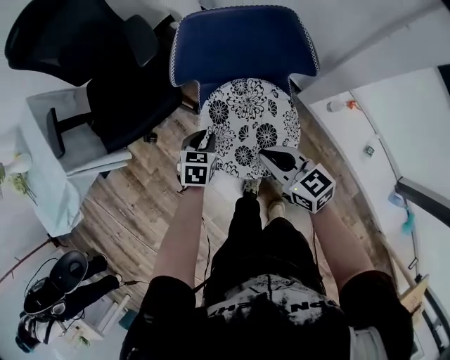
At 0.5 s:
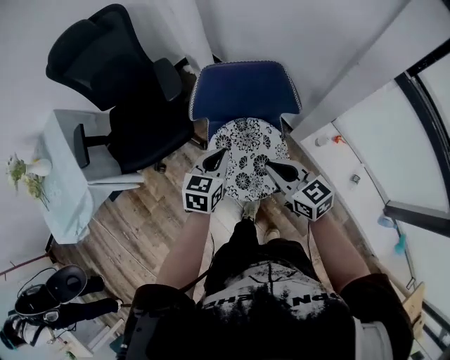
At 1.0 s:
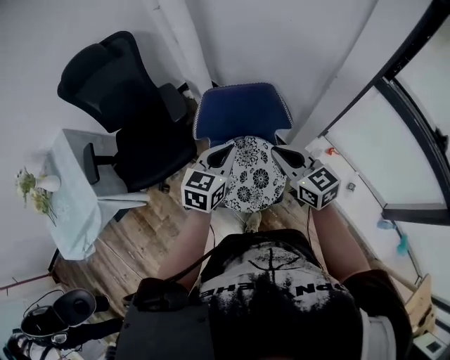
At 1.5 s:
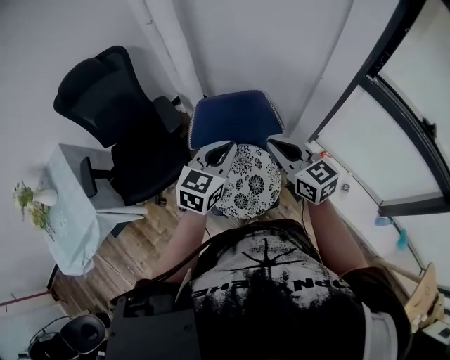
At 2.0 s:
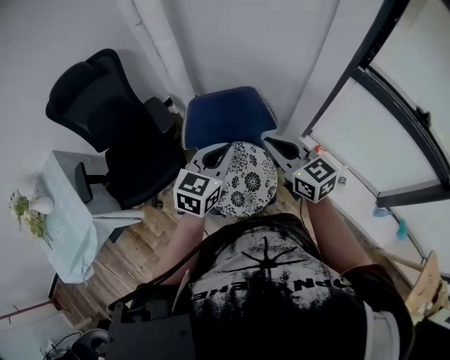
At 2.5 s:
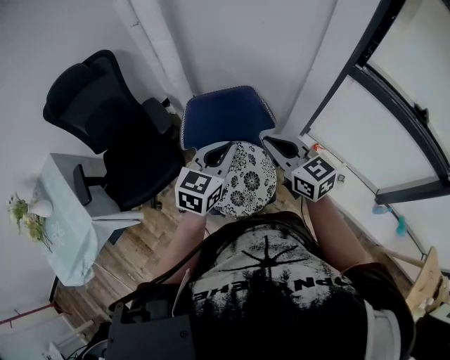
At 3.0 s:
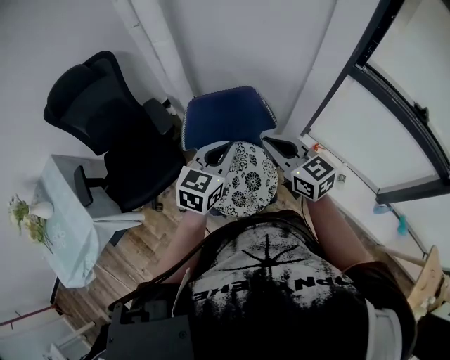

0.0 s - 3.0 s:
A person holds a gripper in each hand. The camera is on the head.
0.0 s - 1.5 s: Both grippers move upward, approximately 35 cm. The right gripper changes its angle by some 20 degrees; the left gripper tilts its fingers some 40 degrees upward.
1.5 s - 3.0 s: The grippers make only small movements.

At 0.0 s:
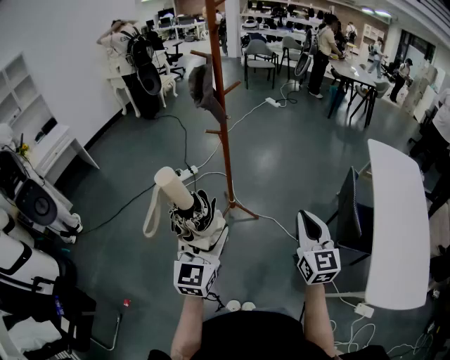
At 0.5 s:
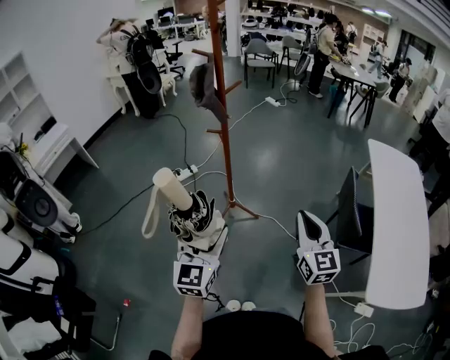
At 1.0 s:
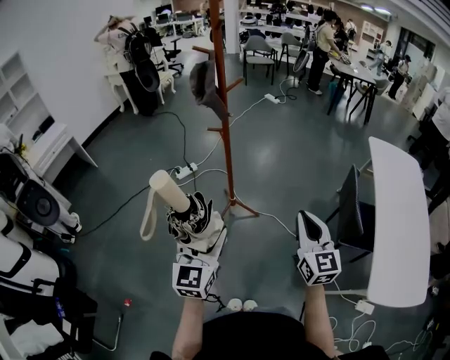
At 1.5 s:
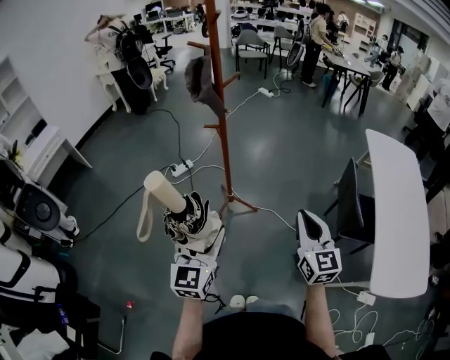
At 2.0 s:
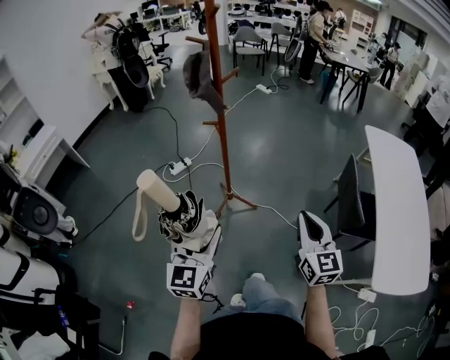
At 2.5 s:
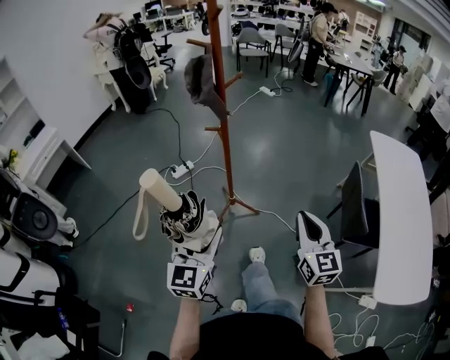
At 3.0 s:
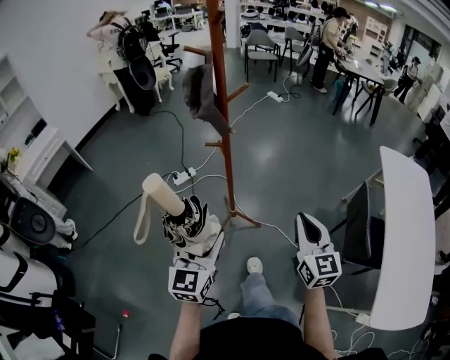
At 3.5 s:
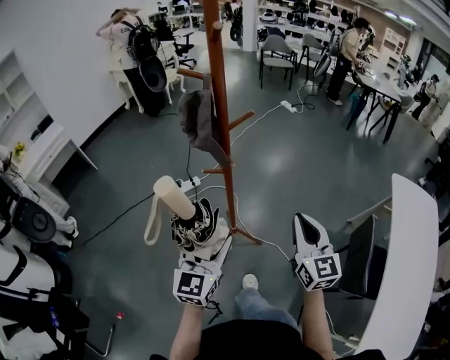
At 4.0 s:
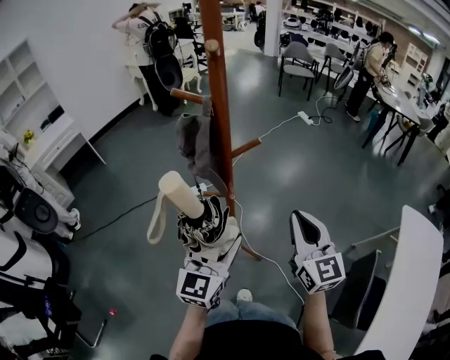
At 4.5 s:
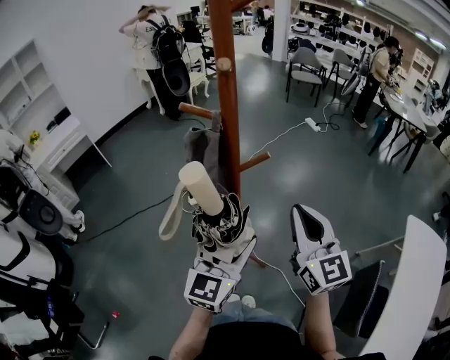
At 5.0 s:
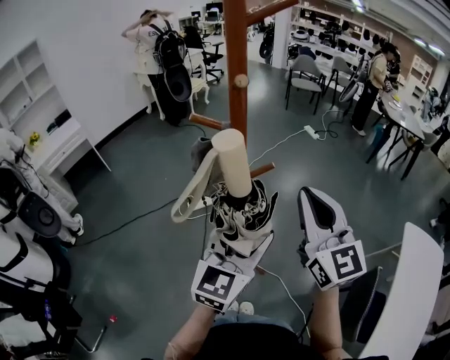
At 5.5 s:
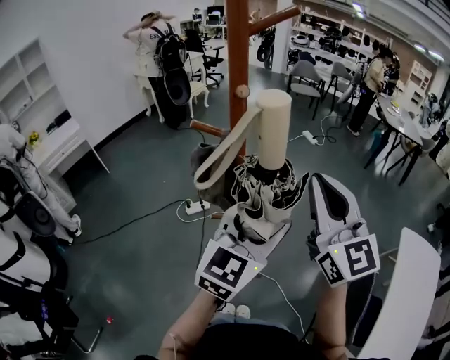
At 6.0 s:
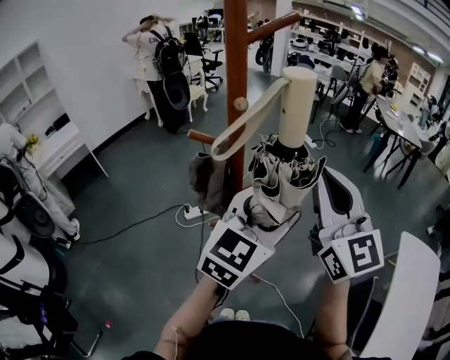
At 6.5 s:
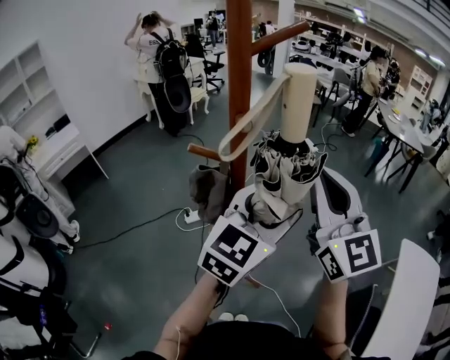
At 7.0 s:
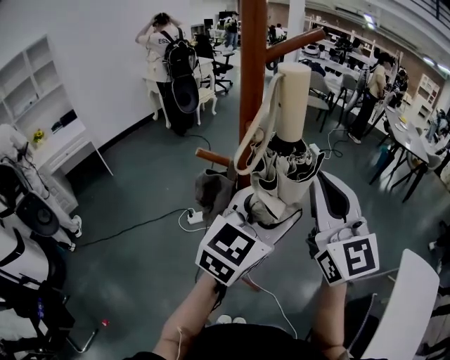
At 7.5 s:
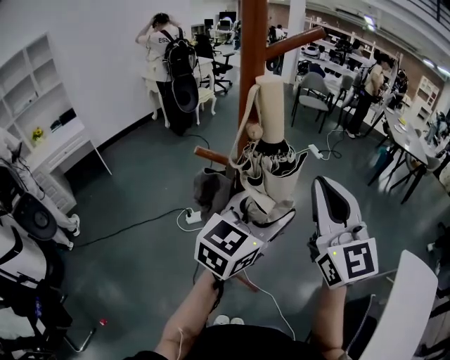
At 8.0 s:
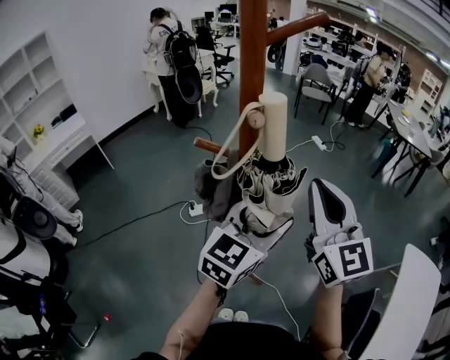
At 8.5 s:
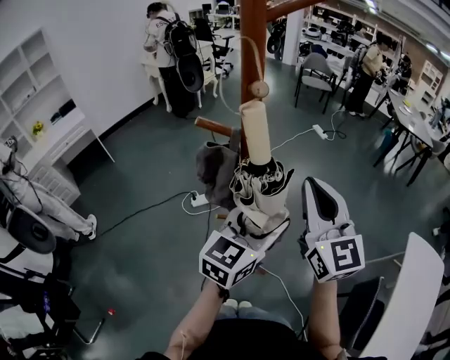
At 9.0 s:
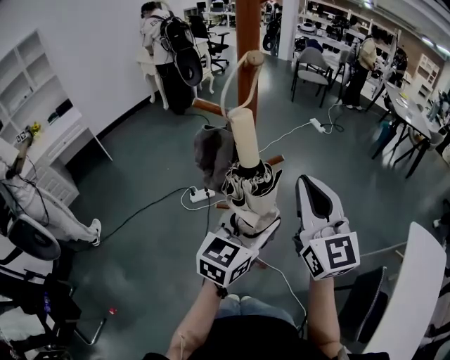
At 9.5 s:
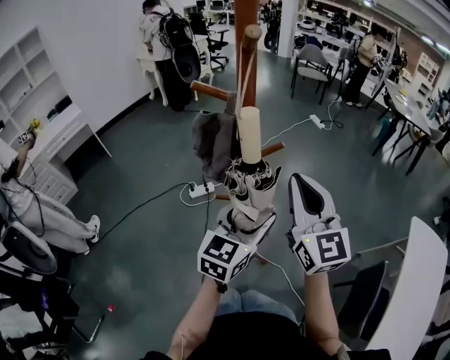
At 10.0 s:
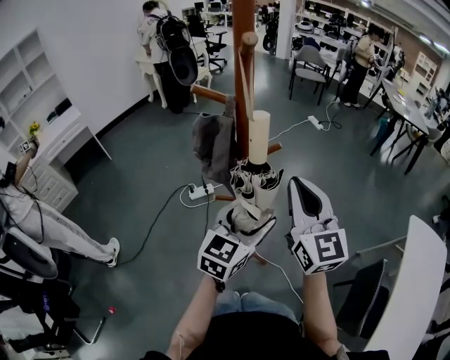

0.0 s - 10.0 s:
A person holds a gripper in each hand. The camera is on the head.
0.0 s - 2.0 s: The left gripper moves to the left, roughly 5 cm.
2.0 s - 4.0 s: The grippers both shift forward by about 40 cm. The right gripper turns by about 20 degrees.
4.0 s - 6.0 s: The right gripper goes approximately 25 cm upward; the left gripper is displaced upward, forward and to the right by roughly 20 cm, and turns by about 20 degrees.
6.0 s - 8.0 s: The right gripper ends up some 5 cm from where it was. Meanwhile the left gripper heads downward, covering roughly 5 cm.
8.0 s - 10.0 s: The two grippers go approximately 15 cm downward and backward.

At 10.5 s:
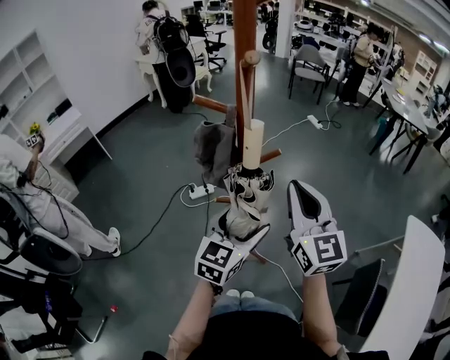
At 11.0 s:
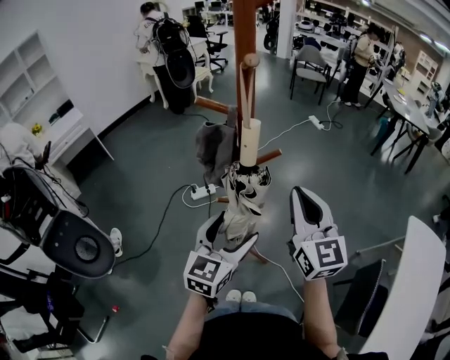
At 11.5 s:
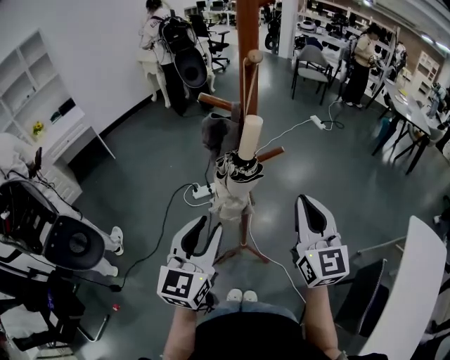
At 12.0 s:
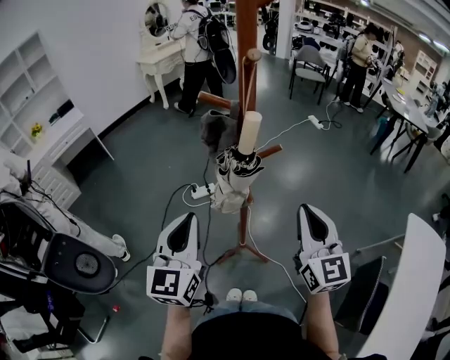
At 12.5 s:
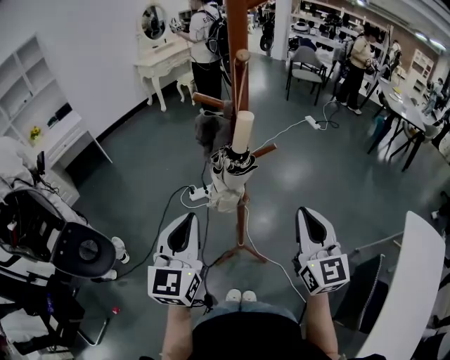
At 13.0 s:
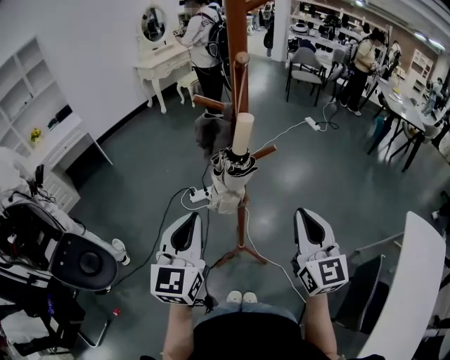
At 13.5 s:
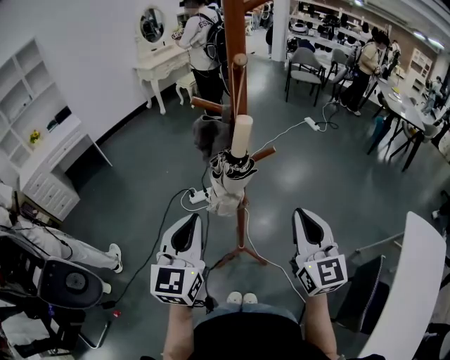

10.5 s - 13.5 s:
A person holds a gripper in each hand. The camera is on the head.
10.5 s - 12.0 s: The right gripper moves backward, approximately 5 cm; the left gripper travels to the left and upward by about 15 cm, rotates approximately 30 degrees, and closes up.
12.0 s - 13.5 s: The grippers stay close to where they were, moving slightly.

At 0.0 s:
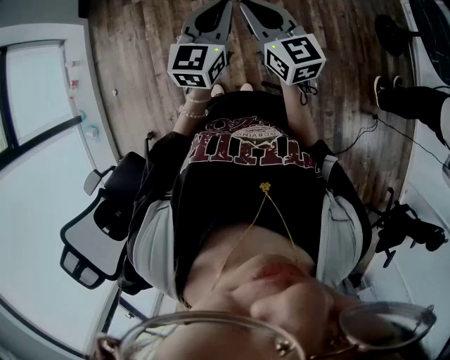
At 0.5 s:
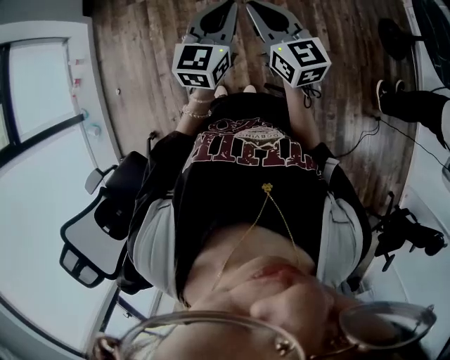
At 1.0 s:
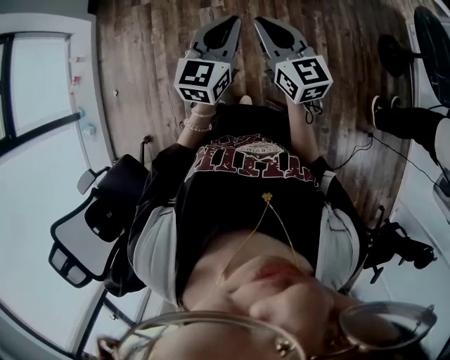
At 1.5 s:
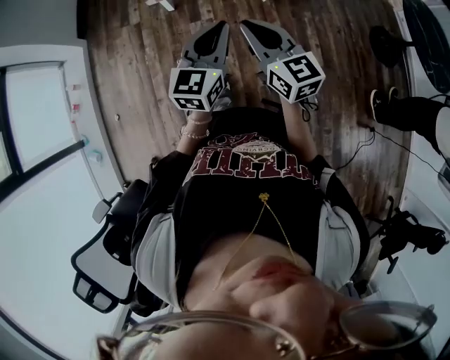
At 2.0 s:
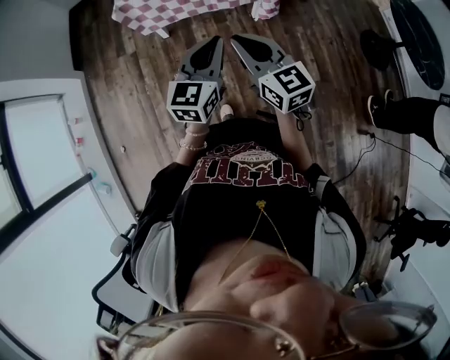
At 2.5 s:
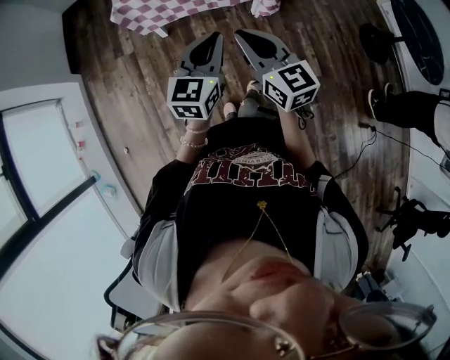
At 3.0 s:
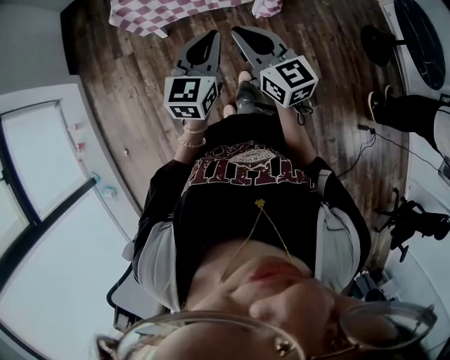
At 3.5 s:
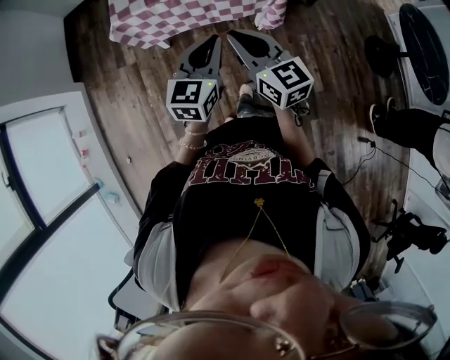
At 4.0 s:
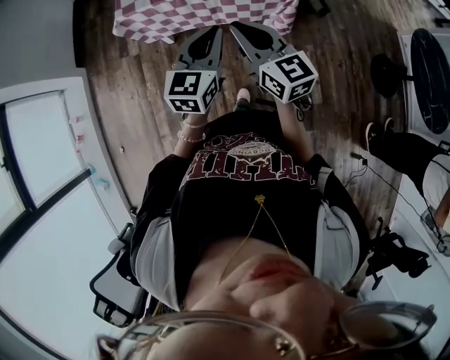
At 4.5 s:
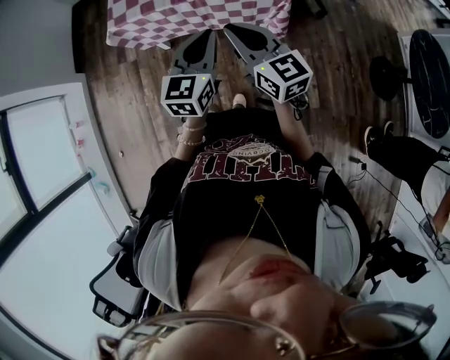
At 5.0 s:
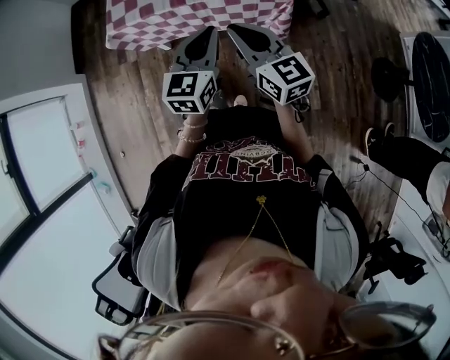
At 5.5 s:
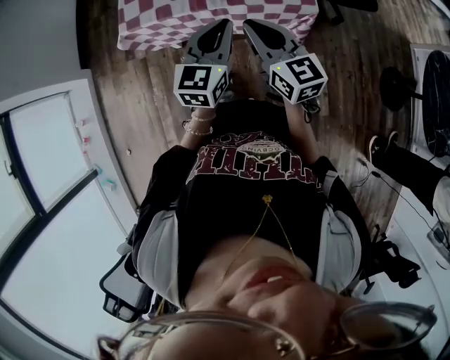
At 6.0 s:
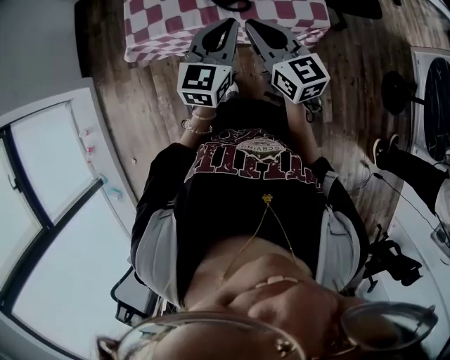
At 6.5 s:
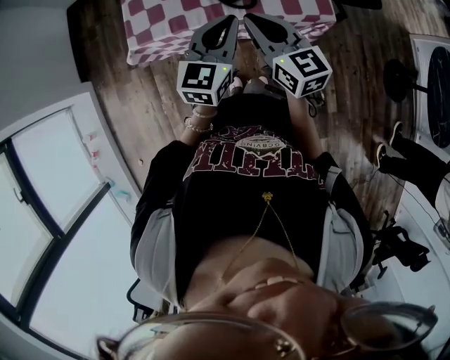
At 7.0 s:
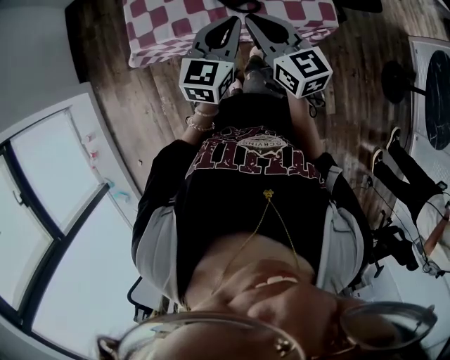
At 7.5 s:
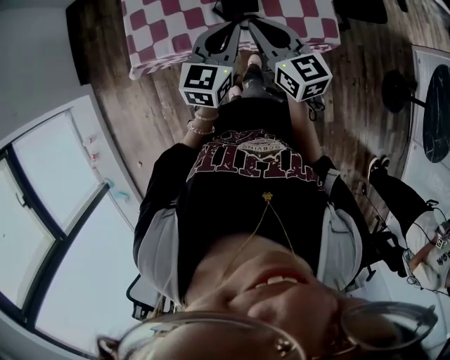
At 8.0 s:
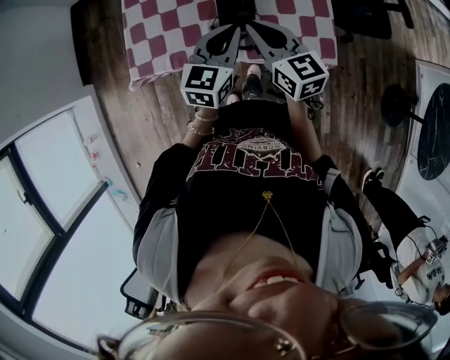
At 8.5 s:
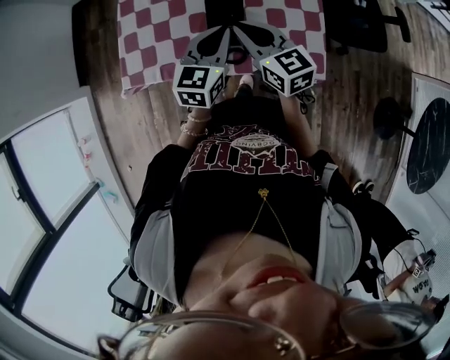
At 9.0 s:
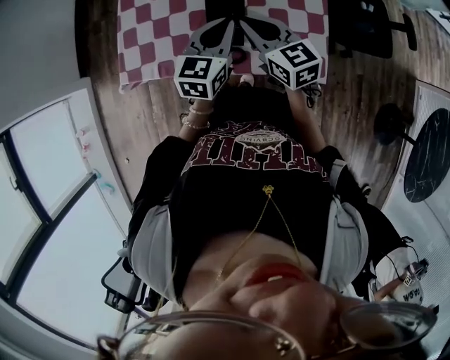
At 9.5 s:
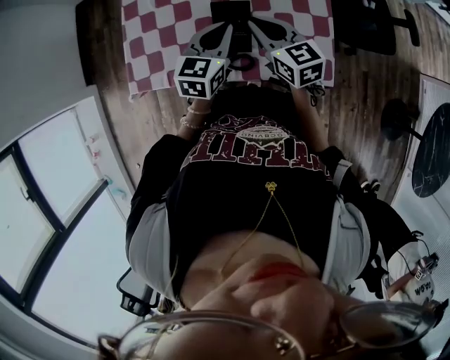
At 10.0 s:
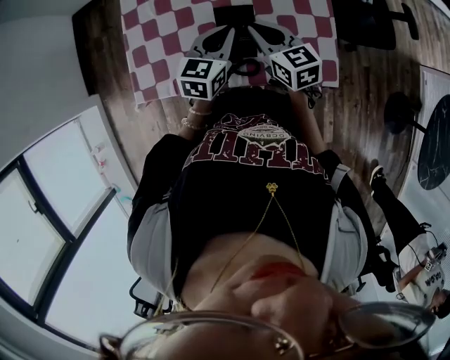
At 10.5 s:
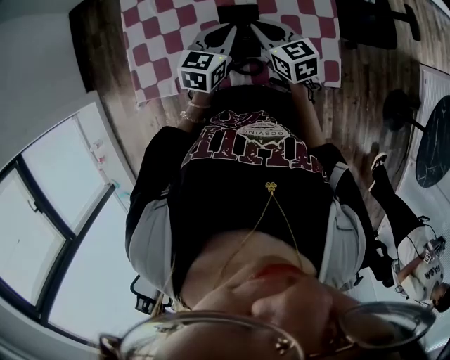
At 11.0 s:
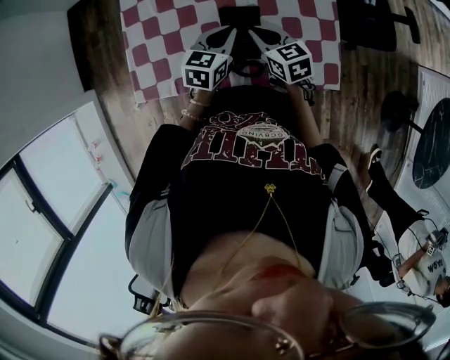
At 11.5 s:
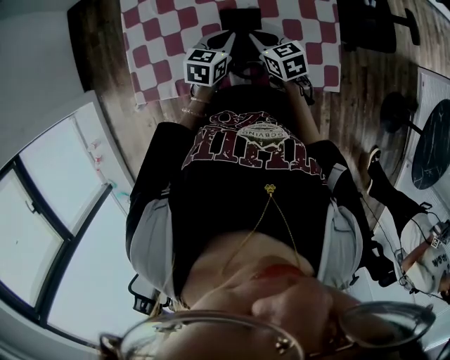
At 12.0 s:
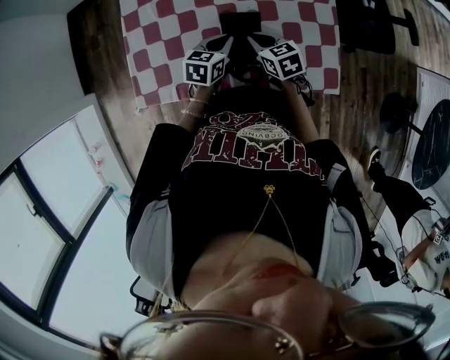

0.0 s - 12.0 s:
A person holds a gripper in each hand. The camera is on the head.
0.0 s - 2.0 s: The two grippers go roughly 15 cm forward.
2.0 s - 4.0 s: Both grippers move forward, some 20 cm.
4.0 s - 6.0 s: Both grippers move forward, roughly 20 cm.
6.0 s - 8.0 s: Both grippers move forward, roughly 15 cm.
8.0 s - 10.0 s: The right gripper travels forward and downward by roughly 10 cm. The left gripper heads forward, covering some 10 cm.
10.0 s - 12.0 s: The two grippers go roughly 10 cm downward.
